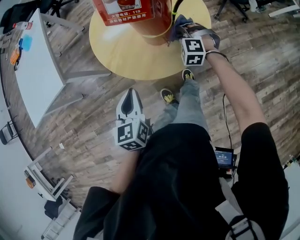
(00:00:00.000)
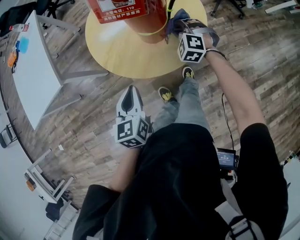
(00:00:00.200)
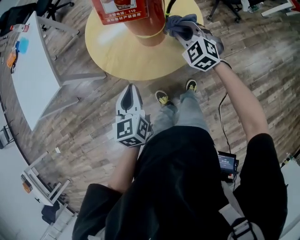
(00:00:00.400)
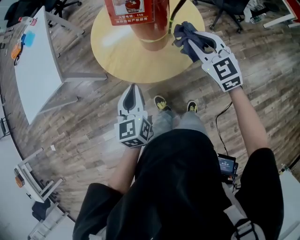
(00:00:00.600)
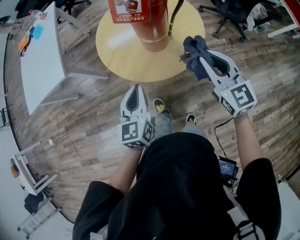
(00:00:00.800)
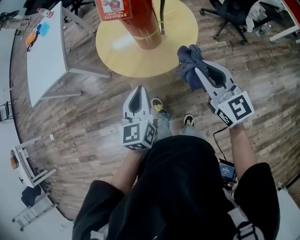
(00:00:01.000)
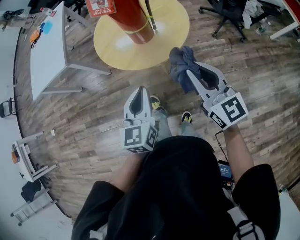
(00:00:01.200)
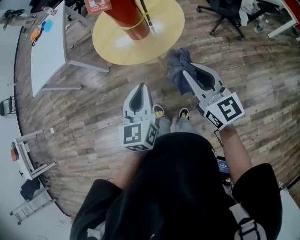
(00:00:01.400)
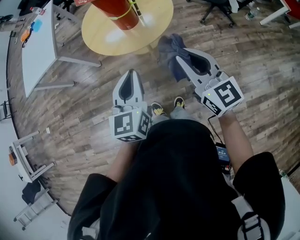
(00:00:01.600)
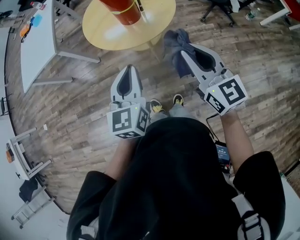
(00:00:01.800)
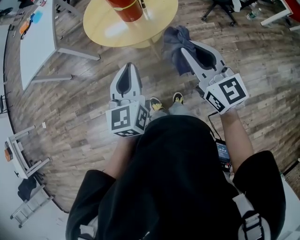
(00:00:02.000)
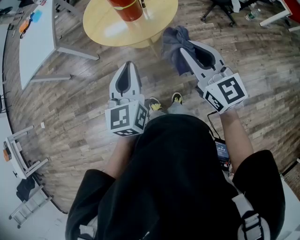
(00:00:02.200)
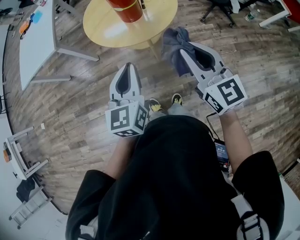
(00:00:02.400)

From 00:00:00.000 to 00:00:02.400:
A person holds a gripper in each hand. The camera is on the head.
From 00:00:00.000 to 00:00:01.200: The right gripper shifts roughly 40 cm upward and backward, and tilts its fingers about 50 degrees upward. Meanwhile the left gripper heads to the right, backward and upward, covering about 25 cm.
From 00:00:01.200 to 00:00:02.400: Both grippers travel together backward, some 5 cm.

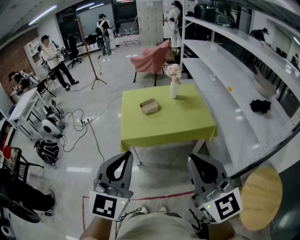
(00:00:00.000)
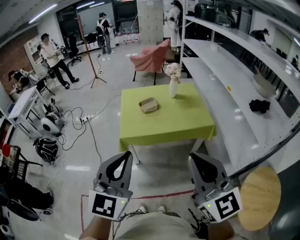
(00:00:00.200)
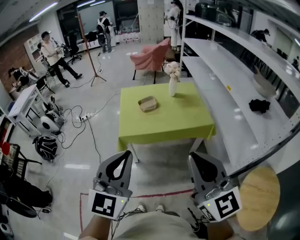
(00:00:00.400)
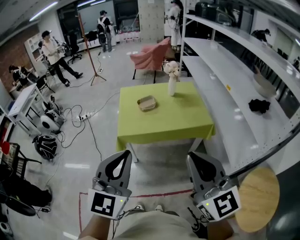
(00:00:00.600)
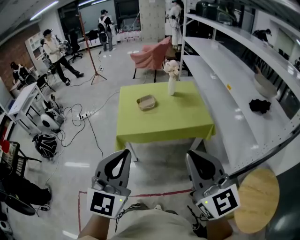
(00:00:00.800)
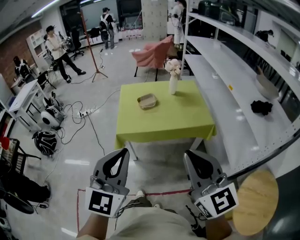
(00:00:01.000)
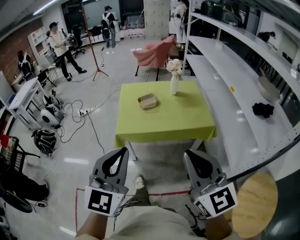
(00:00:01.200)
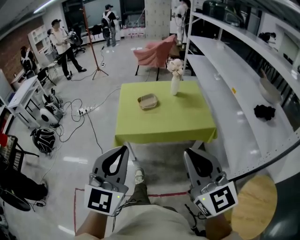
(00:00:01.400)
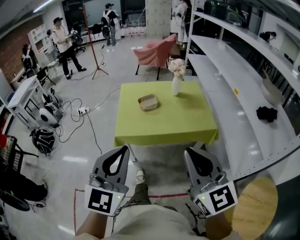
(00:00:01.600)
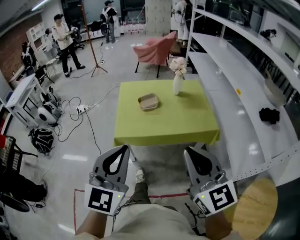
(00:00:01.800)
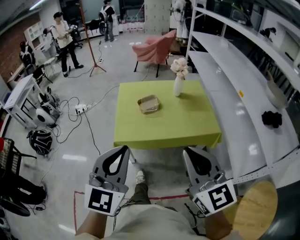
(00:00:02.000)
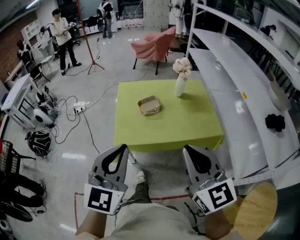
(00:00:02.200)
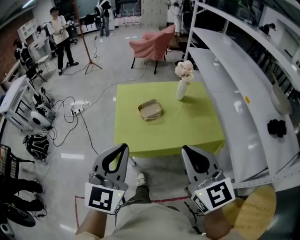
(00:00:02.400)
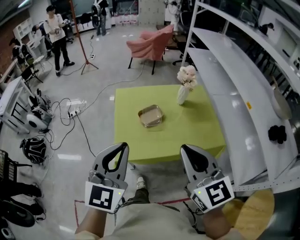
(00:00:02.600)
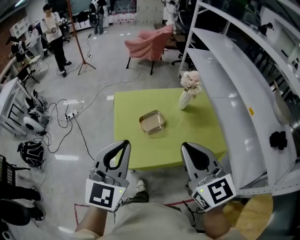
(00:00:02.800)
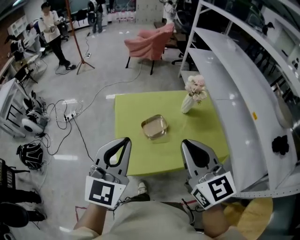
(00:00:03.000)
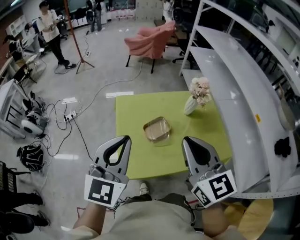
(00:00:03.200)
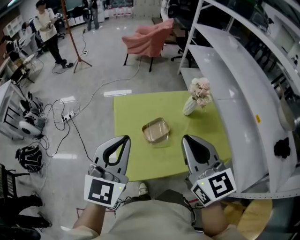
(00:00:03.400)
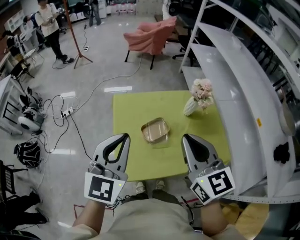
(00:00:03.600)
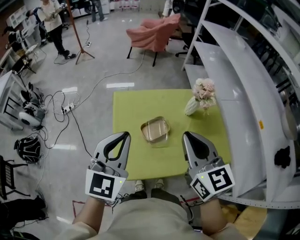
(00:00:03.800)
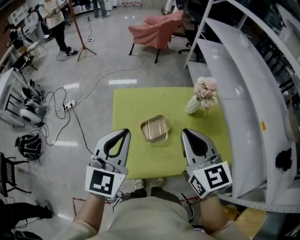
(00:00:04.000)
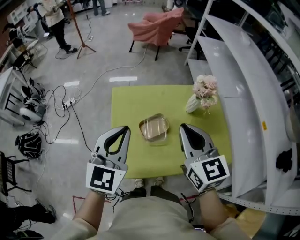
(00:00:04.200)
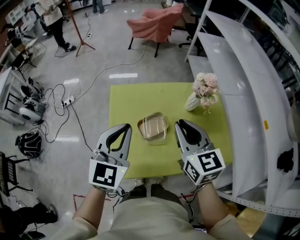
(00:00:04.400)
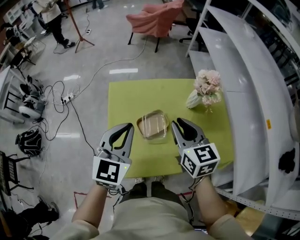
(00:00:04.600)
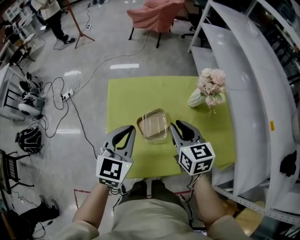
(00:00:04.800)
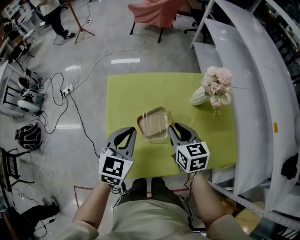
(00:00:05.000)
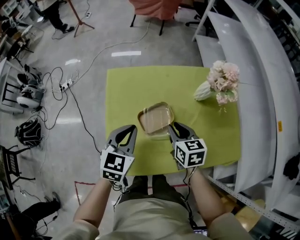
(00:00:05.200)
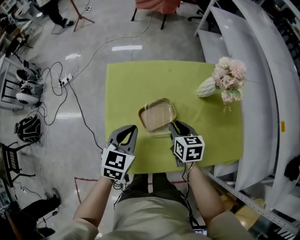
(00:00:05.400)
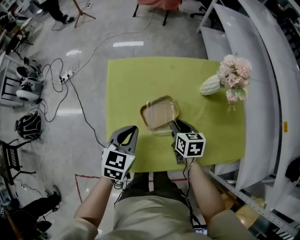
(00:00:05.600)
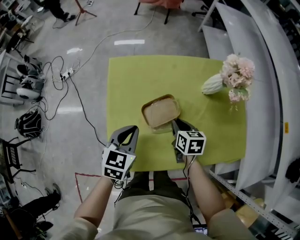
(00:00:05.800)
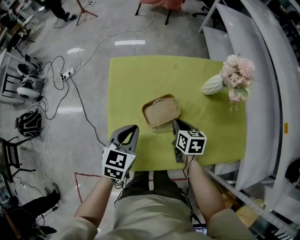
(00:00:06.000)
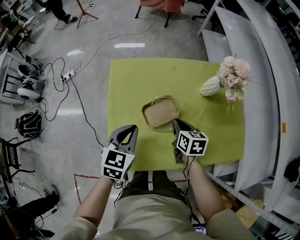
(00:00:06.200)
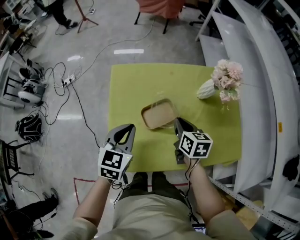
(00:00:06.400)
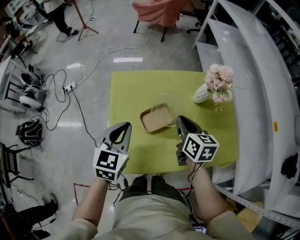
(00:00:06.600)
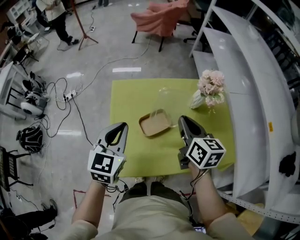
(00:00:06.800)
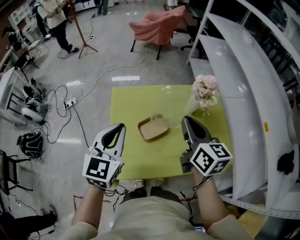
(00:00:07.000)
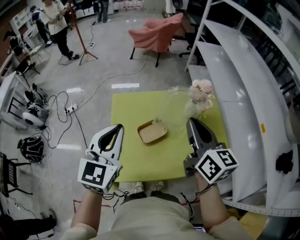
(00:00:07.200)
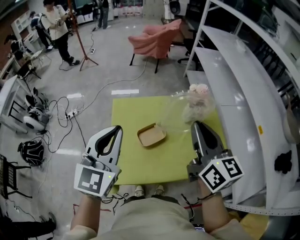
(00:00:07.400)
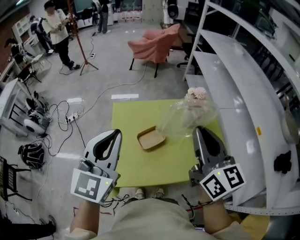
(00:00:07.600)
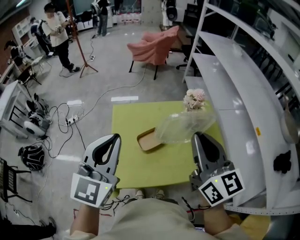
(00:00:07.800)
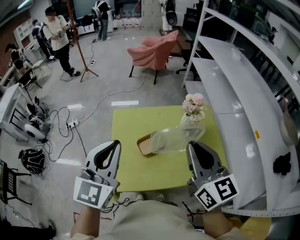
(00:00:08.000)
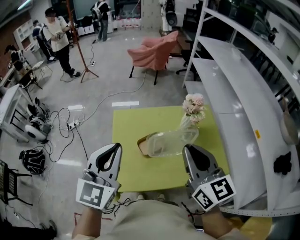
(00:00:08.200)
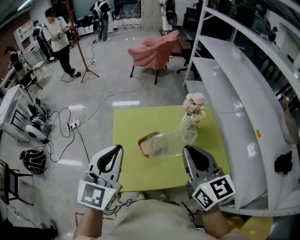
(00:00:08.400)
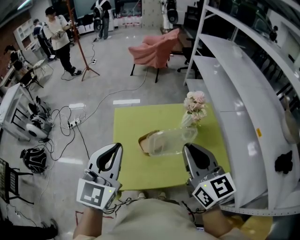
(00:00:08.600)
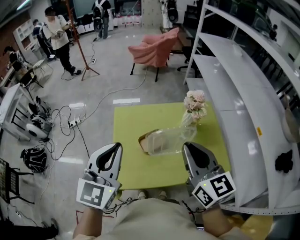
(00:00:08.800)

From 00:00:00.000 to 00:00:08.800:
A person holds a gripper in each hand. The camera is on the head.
From 00:00:00.000 to 00:00:01.400: The right gripper goes some 5 cm forward. The left gripper shifts by some 5 cm.
From 00:00:01.400 to 00:00:03.000: The two grippers travel together, forward, roughly 40 cm.
From 00:00:03.000 to 00:00:04.400: Both grippers move forward and downward, about 20 cm.
From 00:00:04.400 to 00:00:05.800: Both grippers travel together downward, about 30 cm. The right gripper points its fingers approximately 30 degrees further downward, while the left gripper rotates about 30 degrees.
From 00:00:05.800 to 00:00:07.400: The two grippers go some 35 cm upward. The left gripper angles its fingers upward, by approximately 30 degrees. The right gripper angles its fingers upward, by roughly 50 degrees.
From 00:00:07.400 to 00:00:08.800: The right gripper heads backward, covering about 5 cm.

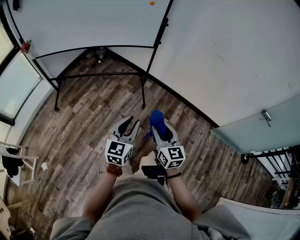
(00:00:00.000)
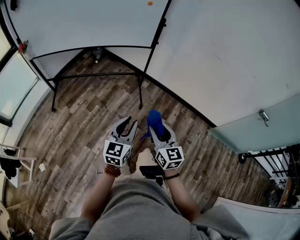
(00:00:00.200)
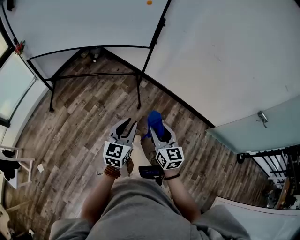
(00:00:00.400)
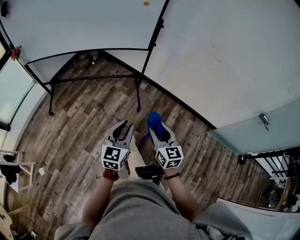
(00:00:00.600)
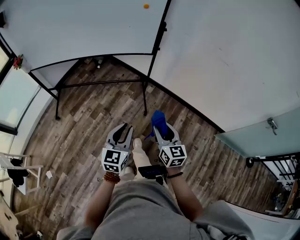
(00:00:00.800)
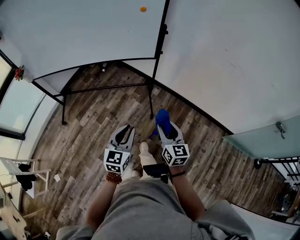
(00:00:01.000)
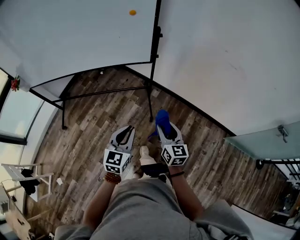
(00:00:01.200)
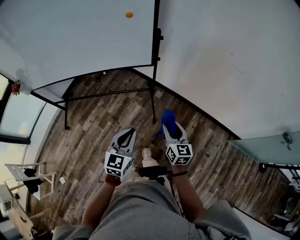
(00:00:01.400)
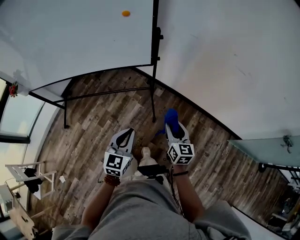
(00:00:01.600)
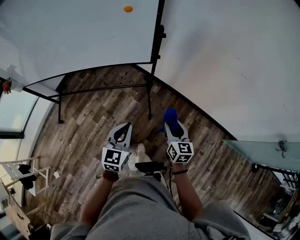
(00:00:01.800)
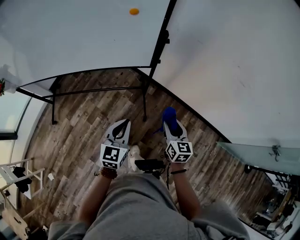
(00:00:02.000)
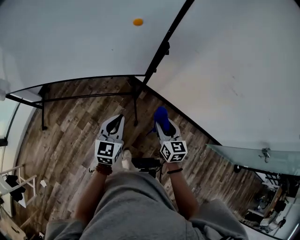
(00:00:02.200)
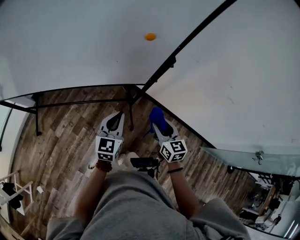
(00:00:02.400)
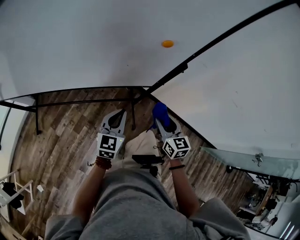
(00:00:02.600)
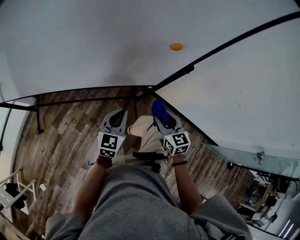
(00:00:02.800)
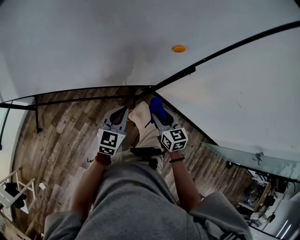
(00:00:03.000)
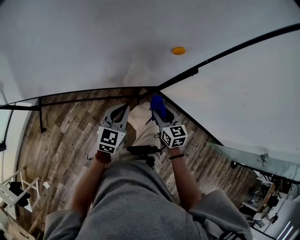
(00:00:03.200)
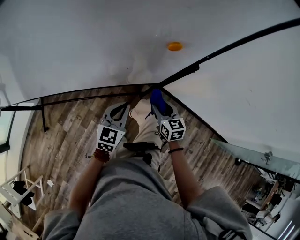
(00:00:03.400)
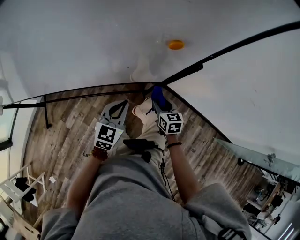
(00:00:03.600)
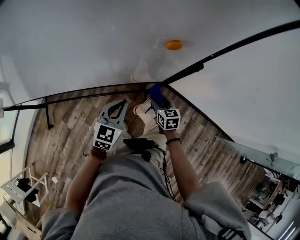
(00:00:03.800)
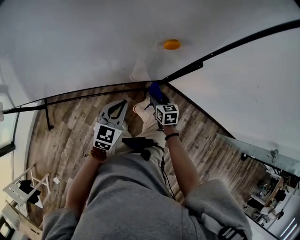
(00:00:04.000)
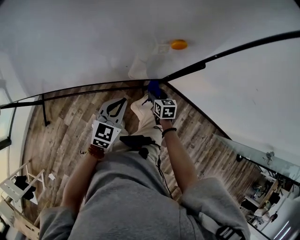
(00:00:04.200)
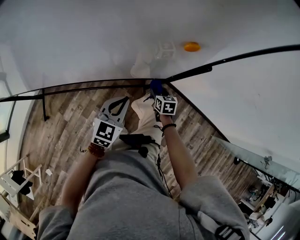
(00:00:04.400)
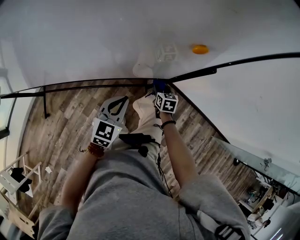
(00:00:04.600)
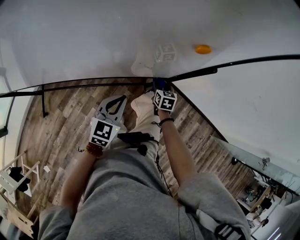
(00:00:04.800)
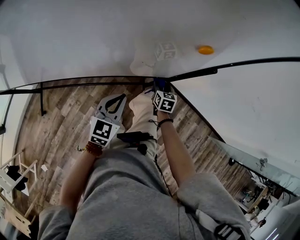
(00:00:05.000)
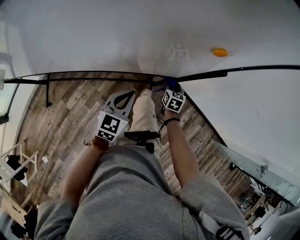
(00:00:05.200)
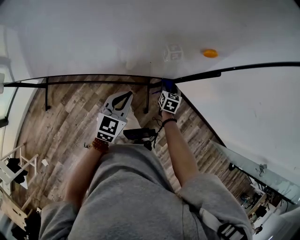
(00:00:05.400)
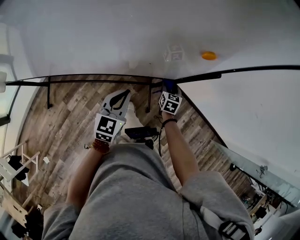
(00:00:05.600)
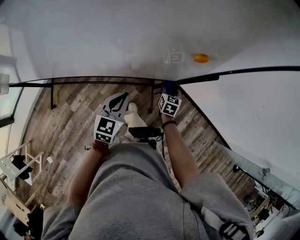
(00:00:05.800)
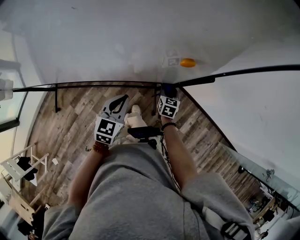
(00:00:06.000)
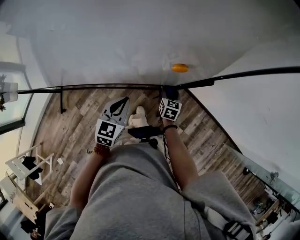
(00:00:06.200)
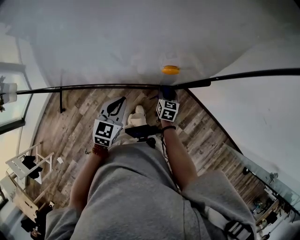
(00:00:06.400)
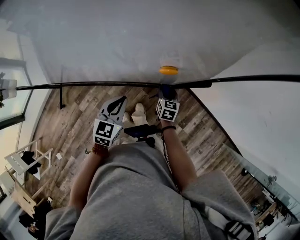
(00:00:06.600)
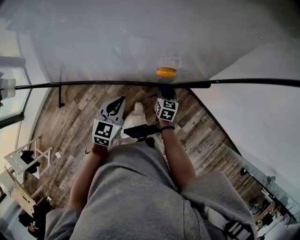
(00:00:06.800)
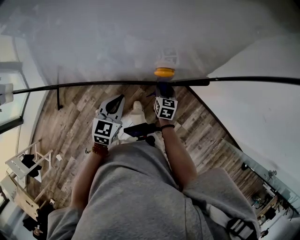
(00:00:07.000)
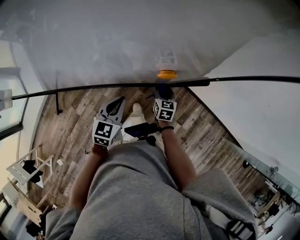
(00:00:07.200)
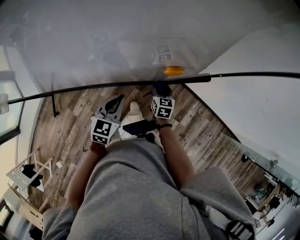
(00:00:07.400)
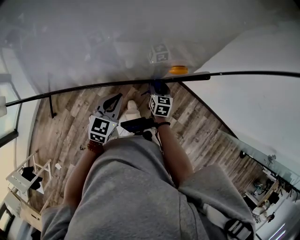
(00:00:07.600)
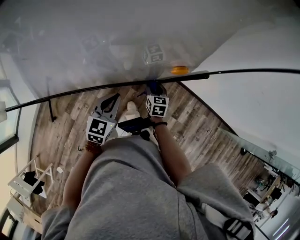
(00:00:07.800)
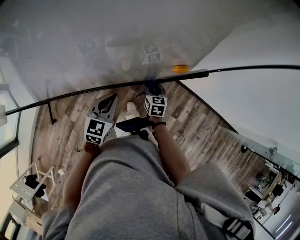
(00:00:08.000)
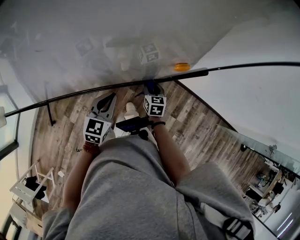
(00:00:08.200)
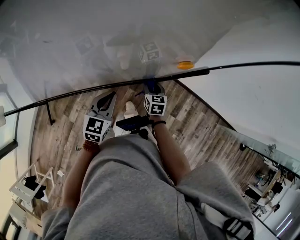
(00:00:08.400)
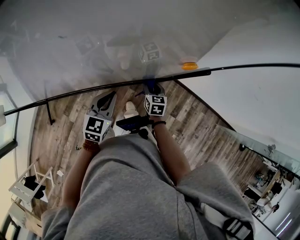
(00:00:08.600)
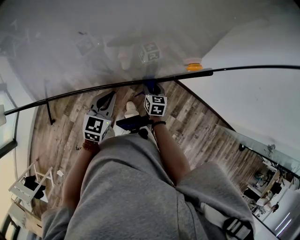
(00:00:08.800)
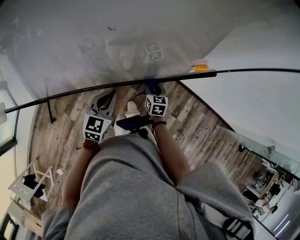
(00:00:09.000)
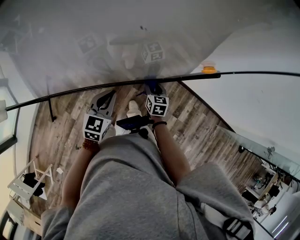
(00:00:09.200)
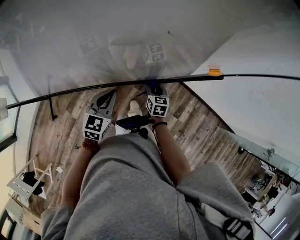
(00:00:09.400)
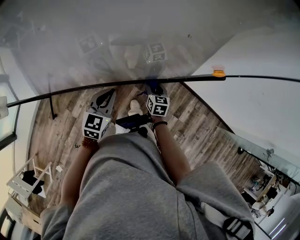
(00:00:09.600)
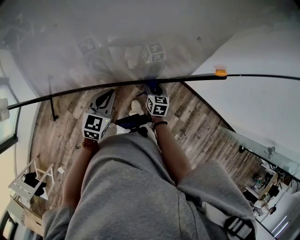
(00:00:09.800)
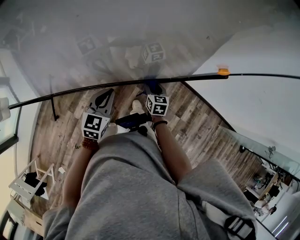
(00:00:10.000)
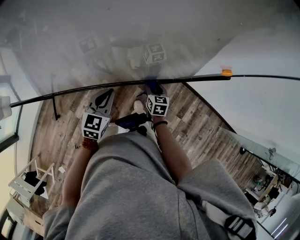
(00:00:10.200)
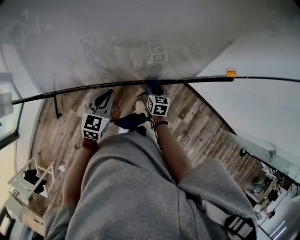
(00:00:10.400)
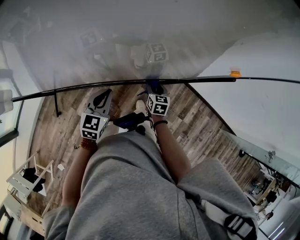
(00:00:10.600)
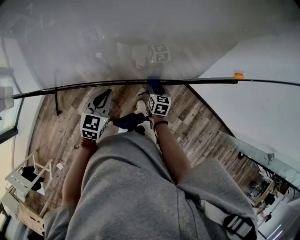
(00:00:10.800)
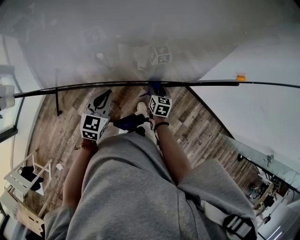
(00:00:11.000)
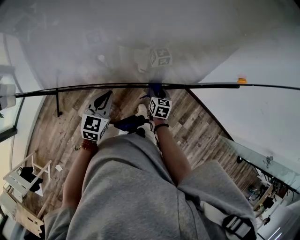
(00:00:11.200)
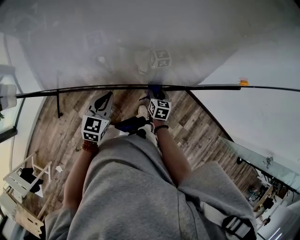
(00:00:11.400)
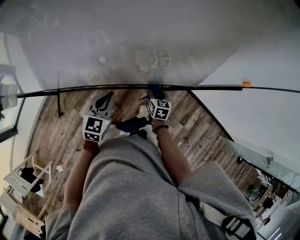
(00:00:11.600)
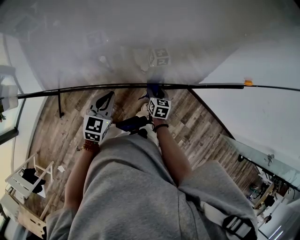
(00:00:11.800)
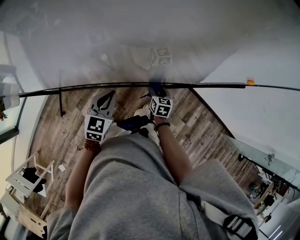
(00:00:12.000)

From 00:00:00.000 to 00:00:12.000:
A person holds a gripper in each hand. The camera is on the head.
From 00:00:00.000 to 00:00:01.600: The two grippers go approximately 30 cm forward. The left gripper closes its fingers.
From 00:00:01.600 to 00:00:03.000: The left gripper goes some 30 cm forward, while the right gripper is displaced forward and to the left by roughly 30 cm, and swivels roughly 20 degrees.
From 00:00:03.000 to 00:00:04.400: The right gripper travels downward and forward by roughly 25 cm, and rotates some 20 degrees.
From 00:00:04.400 to 00:00:07.600: The grippers make only small movements.
From 00:00:07.600 to 00:00:09.000: There are only small adjustments of the grippers.
From 00:00:09.000 to 00:00:10.400: Both grippers travel together to the left, approximately 10 cm.
From 00:00:10.400 to 00:00:12.000: Both grippers travel together to the left, approximately 10 cm.
